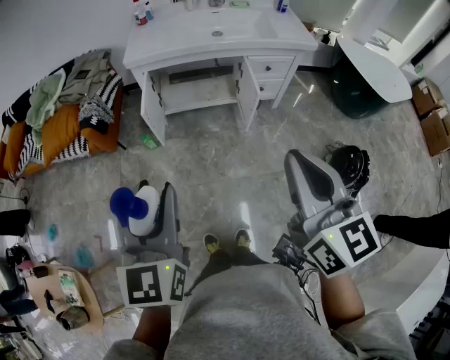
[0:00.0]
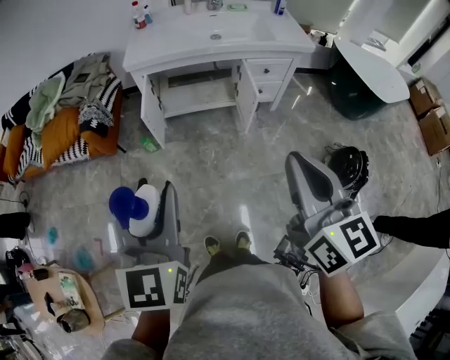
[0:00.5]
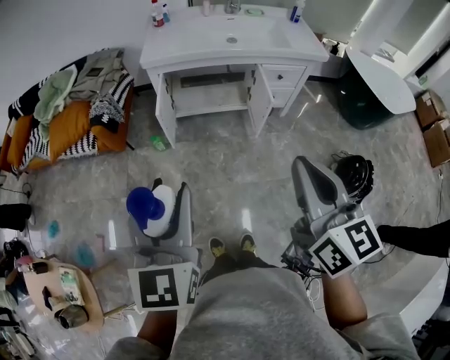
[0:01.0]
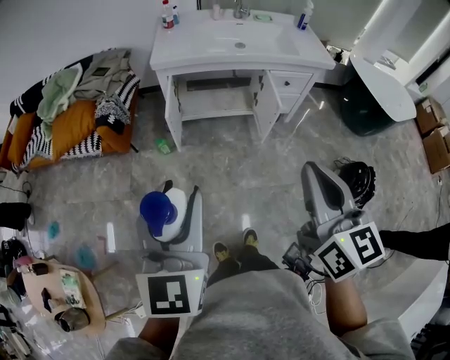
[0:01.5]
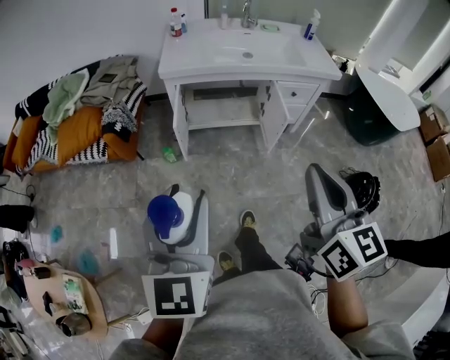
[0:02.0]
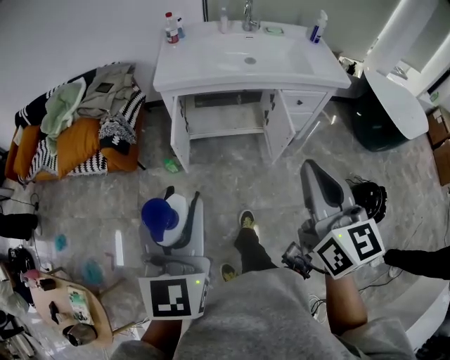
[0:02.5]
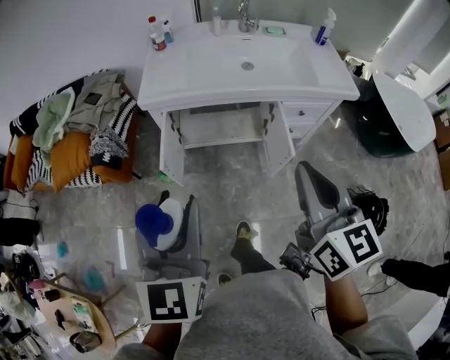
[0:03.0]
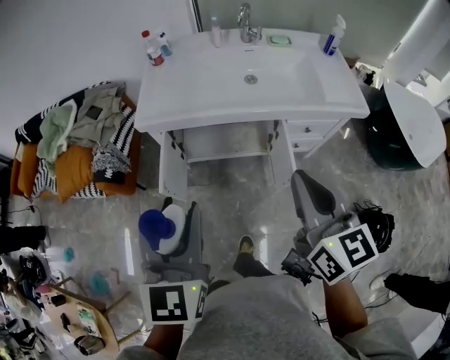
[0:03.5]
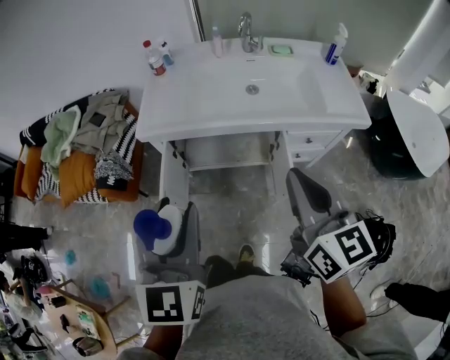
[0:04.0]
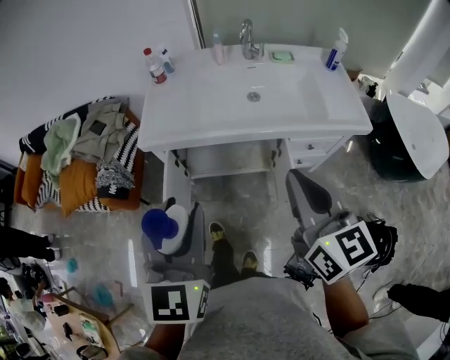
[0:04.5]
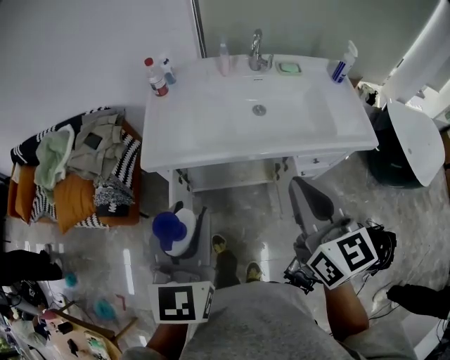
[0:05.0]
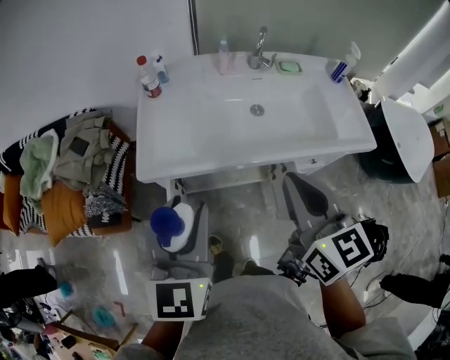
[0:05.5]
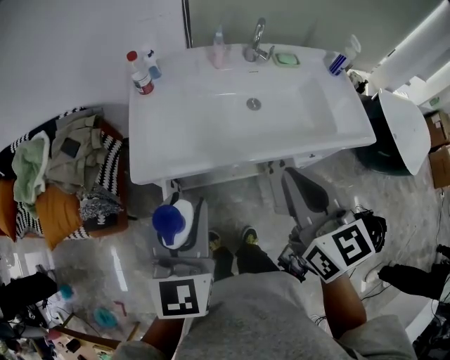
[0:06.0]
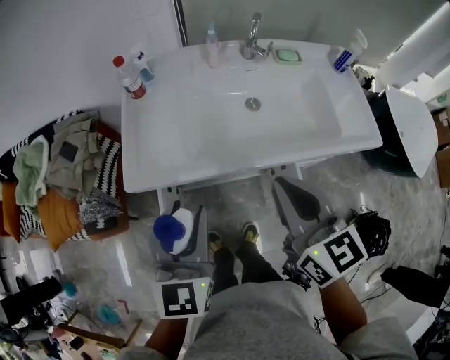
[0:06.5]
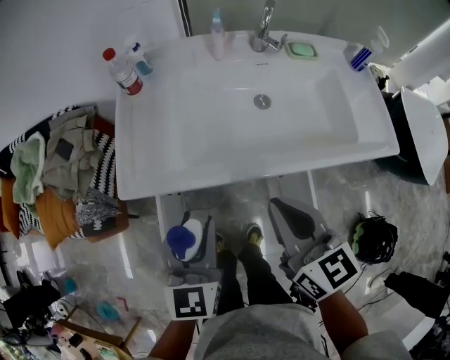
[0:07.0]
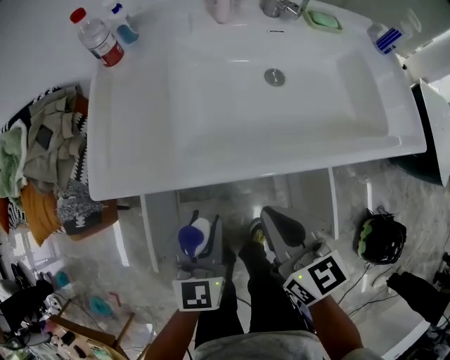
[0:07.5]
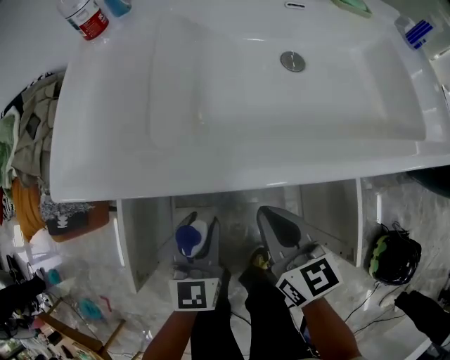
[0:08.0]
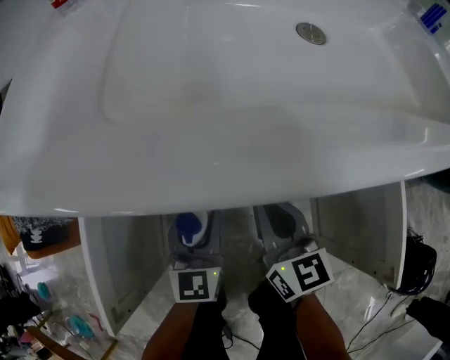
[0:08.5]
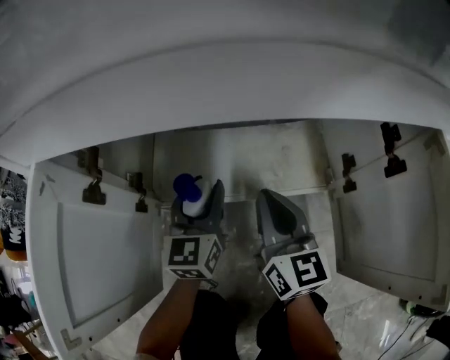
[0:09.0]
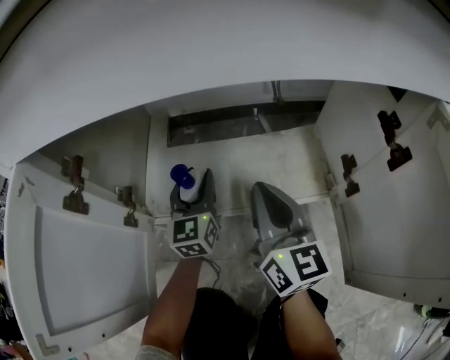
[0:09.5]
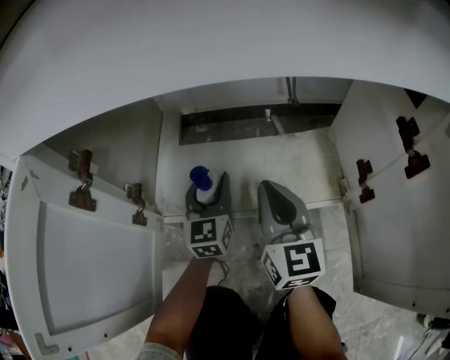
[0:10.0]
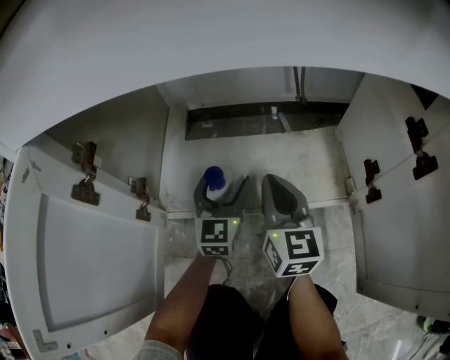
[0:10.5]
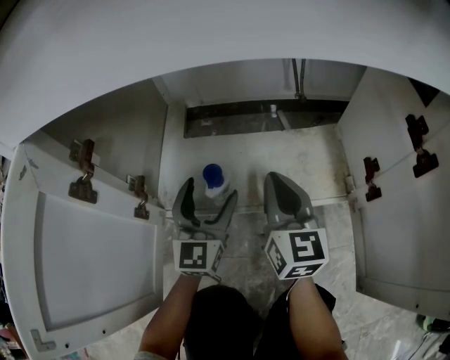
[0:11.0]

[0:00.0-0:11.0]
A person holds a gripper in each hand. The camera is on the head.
0:00.0 to 0:02.0: The two grippers go roughly 5 cm to the left.
0:02.0 to 0:03.5: The grippers both shift forward by roughly 35 cm.
0:03.5 to 0:05.5: The right gripper travels forward and to the left by about 20 cm. The left gripper goes approximately 20 cm forward.
0:05.5 to 0:07.5: Both grippers move downward, about 30 cm.
0:07.5 to 0:09.0: Both grippers travel together downward, some 40 cm.
0:09.0 to 0:11.0: The left gripper travels downward by roughly 5 cm, and opens its fingers; the right gripper shifts roughly 10 cm downward and forward.

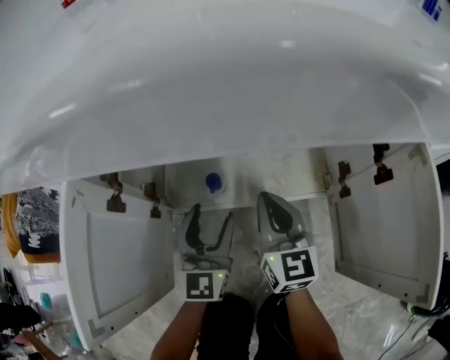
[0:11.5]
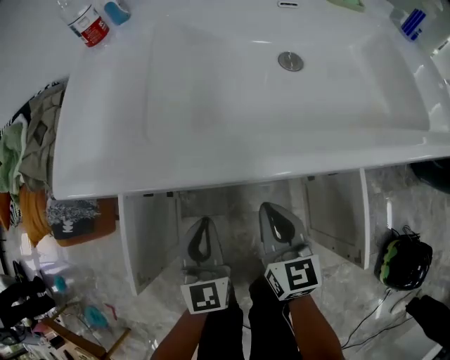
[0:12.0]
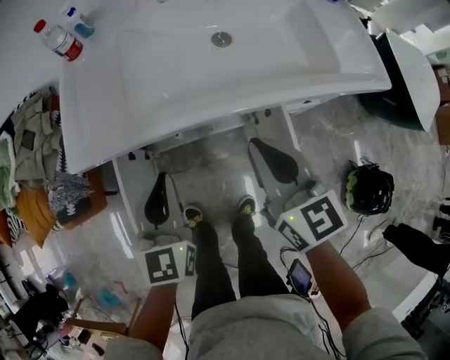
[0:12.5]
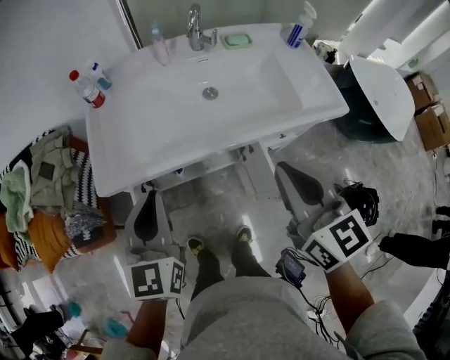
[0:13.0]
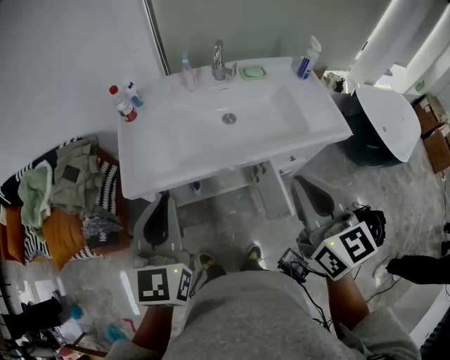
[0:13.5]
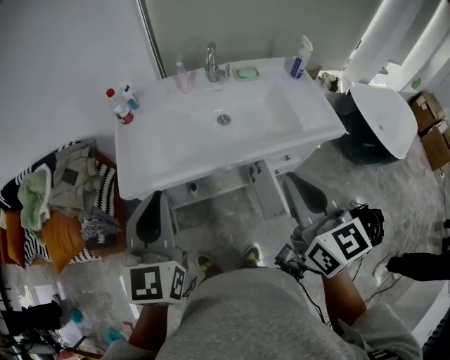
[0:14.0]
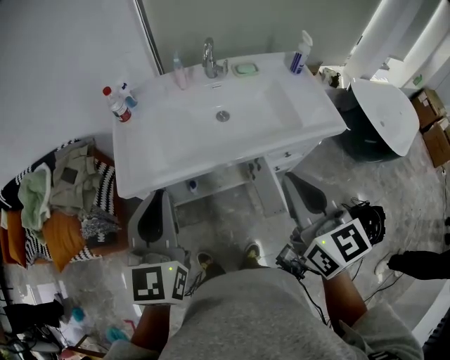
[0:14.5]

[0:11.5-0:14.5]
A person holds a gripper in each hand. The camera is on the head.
0:11.5 to 0:13.0: The two grippers go approximately 60 cm upward. The left gripper closes up.
0:13.0 to 0:14.5: The left gripper moves upward, roughly 10 cm. The right gripper travels upward by approximately 5 cm.

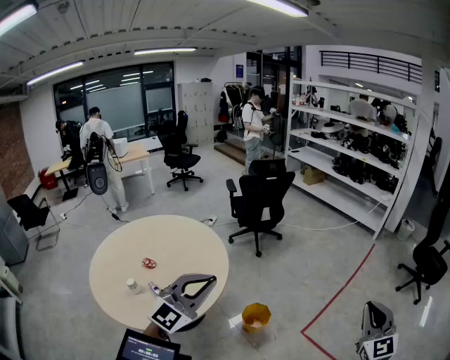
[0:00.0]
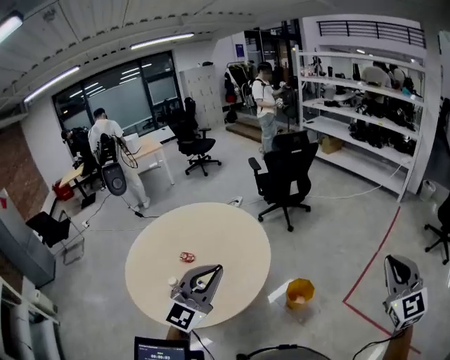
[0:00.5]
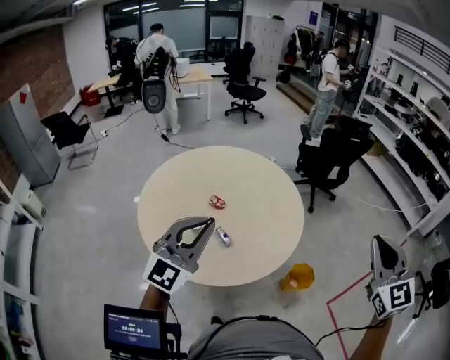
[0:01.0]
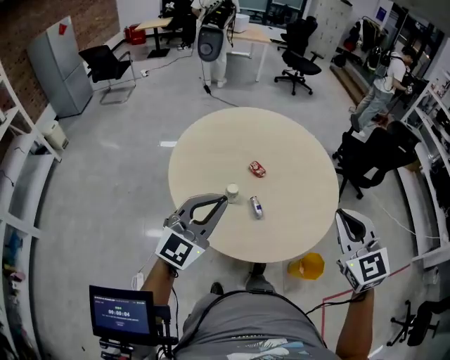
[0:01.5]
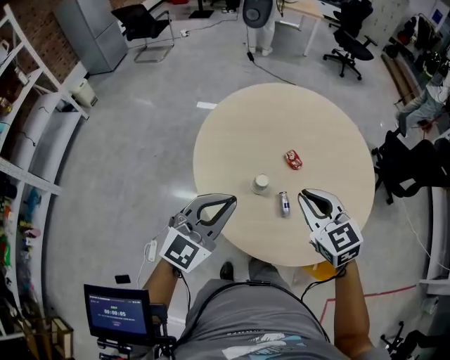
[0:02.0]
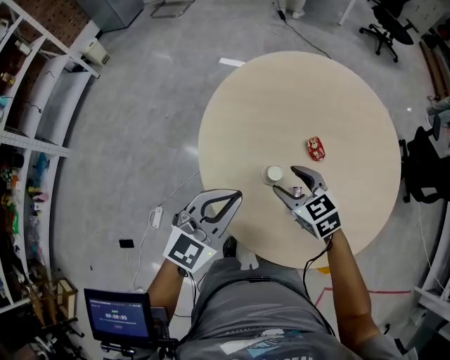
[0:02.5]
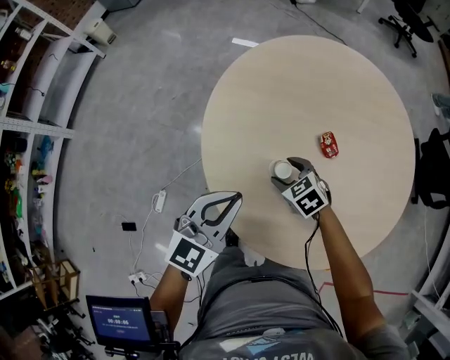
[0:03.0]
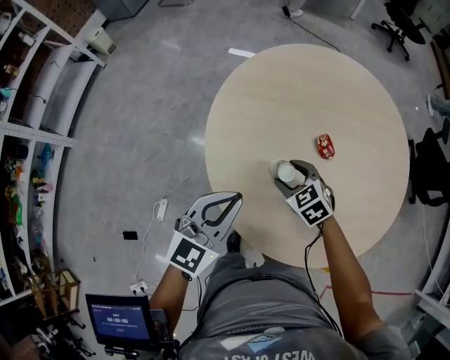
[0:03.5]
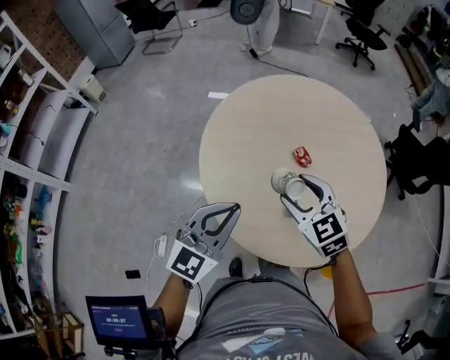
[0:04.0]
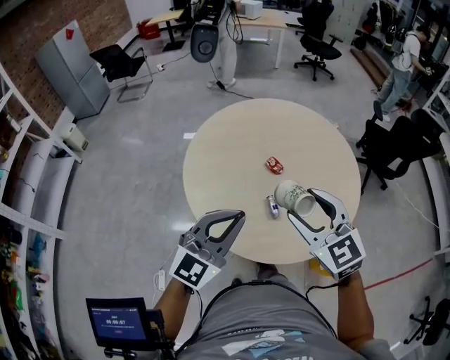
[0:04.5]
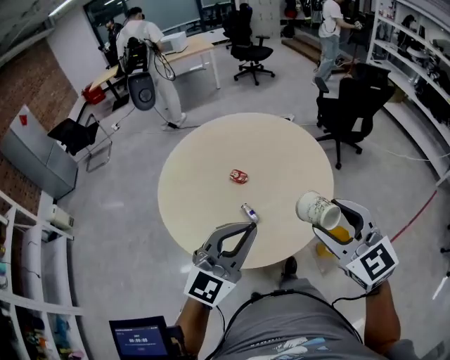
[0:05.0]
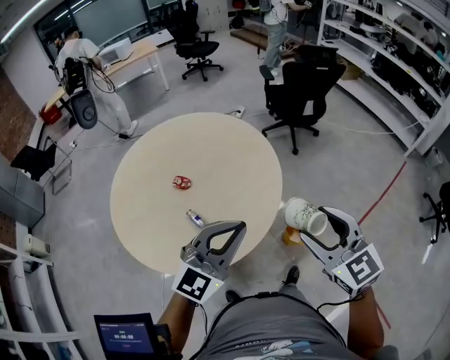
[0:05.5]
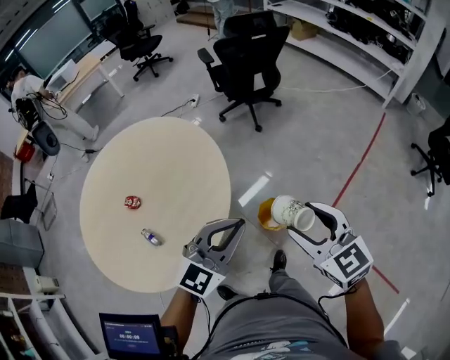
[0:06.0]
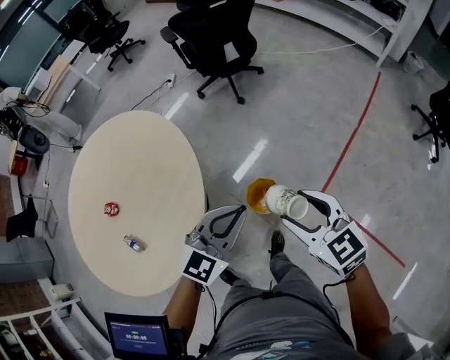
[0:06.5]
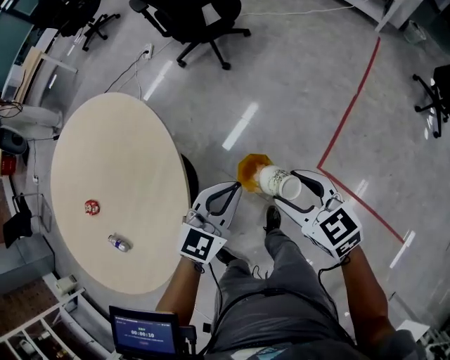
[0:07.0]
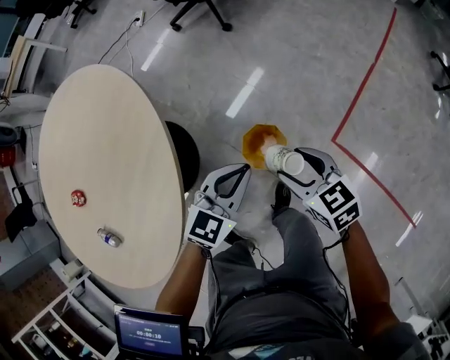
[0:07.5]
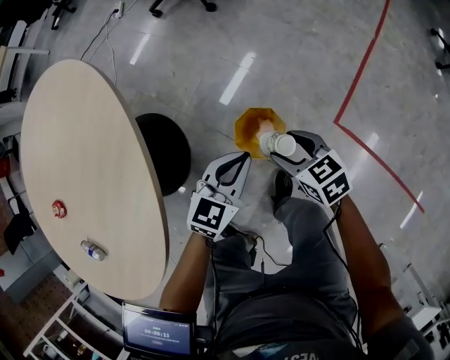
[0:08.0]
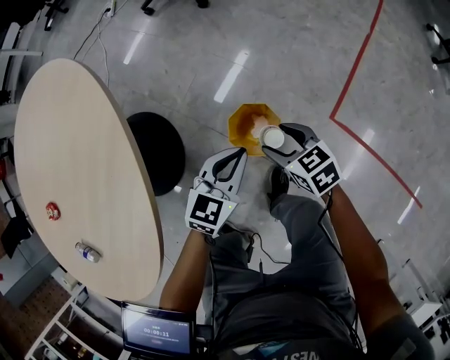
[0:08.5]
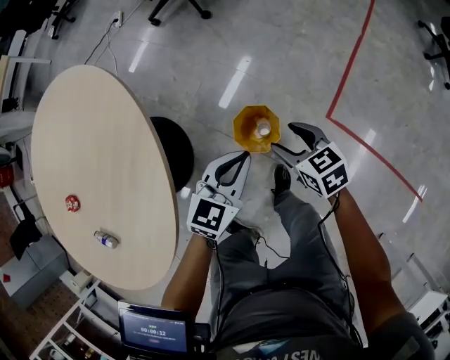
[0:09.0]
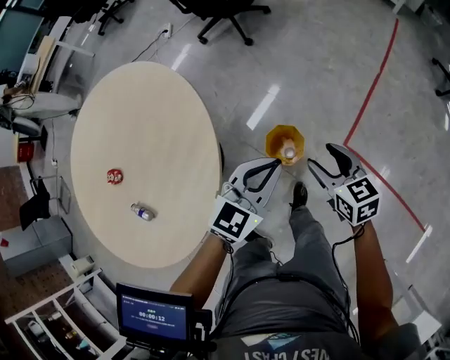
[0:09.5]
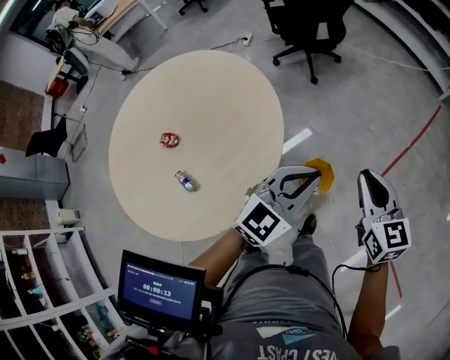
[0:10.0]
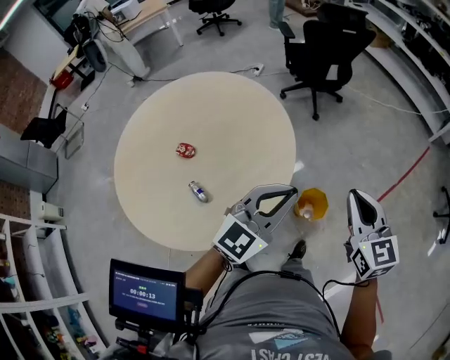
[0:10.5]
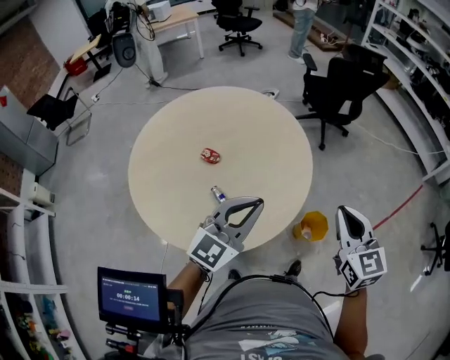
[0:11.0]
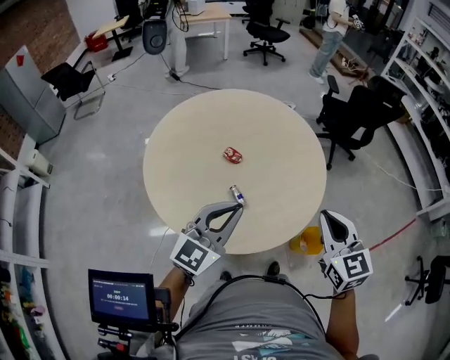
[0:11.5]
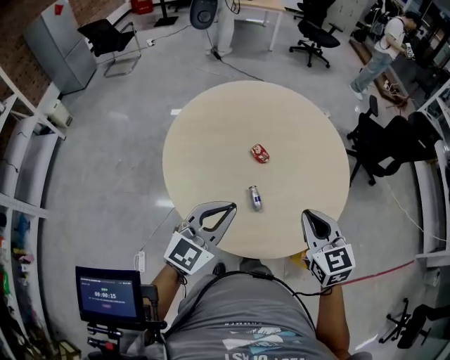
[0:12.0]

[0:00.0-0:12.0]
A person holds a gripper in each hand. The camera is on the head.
0:00.0 to 0:02.0: Both grippers are carried about 70 cm. The right gripper turns by roughly 80 degrees. The left gripper changes its angle by about 50 degrees.
0:02.0 to 0:04.0: The left gripper reaches some 10 cm downward, then returns; the right gripper reaches approximately 25 cm downward, then returns, and opens its fingers.
0:04.0 to 0:06.0: The two grippers travel together, roughly 60 cm. The left gripper rotates about 60 degrees. Meanwhile the right gripper swivels roughly 50 degrees.
0:06.0 to 0:08.0: Both grippers travel together downward, some 50 cm. The left gripper rotates approximately 30 degrees. Meanwhile the right gripper changes its angle by approximately 30 degrees.
0:08.0 to 0:10.0: Both grippers move upward, approximately 50 cm. The right gripper changes its angle by some 30 degrees, and closes up. Meanwhile the left gripper rotates roughly 20 degrees.
0:10.0 to 0:12.0: The pair of grippers is taken roughly 50 cm. The right gripper swivels about 40 degrees, while the left gripper turns by some 50 degrees.
